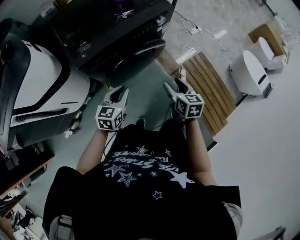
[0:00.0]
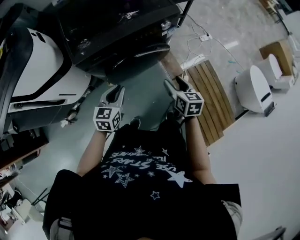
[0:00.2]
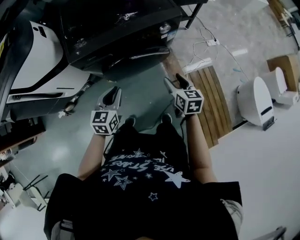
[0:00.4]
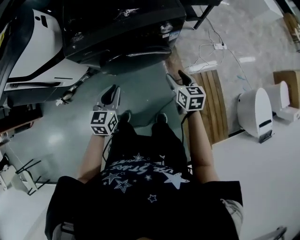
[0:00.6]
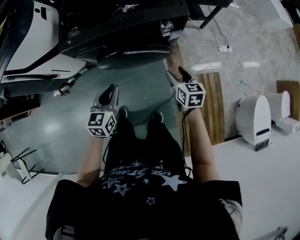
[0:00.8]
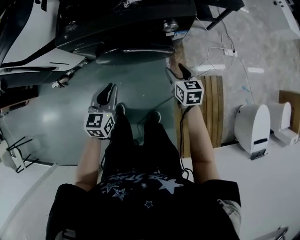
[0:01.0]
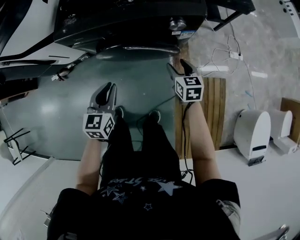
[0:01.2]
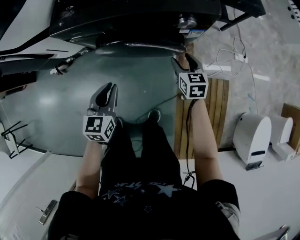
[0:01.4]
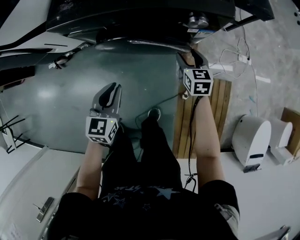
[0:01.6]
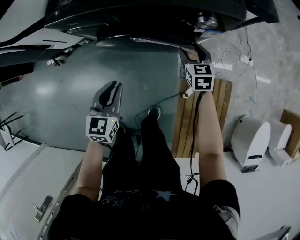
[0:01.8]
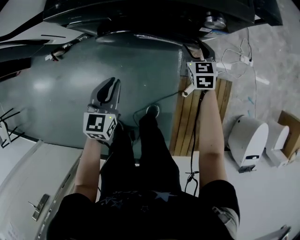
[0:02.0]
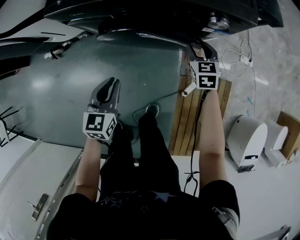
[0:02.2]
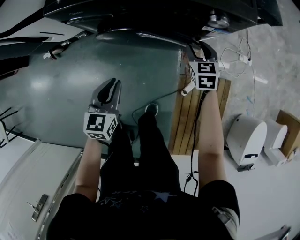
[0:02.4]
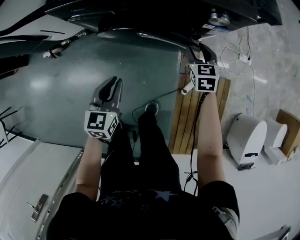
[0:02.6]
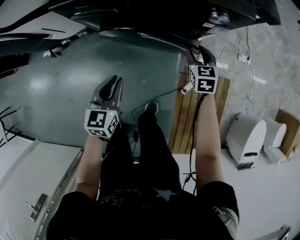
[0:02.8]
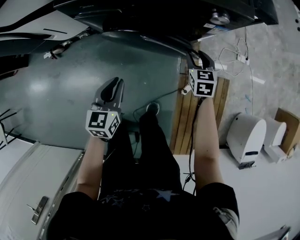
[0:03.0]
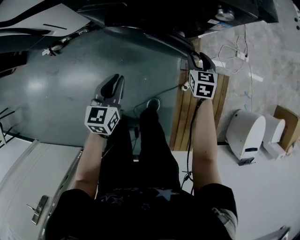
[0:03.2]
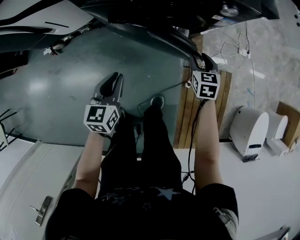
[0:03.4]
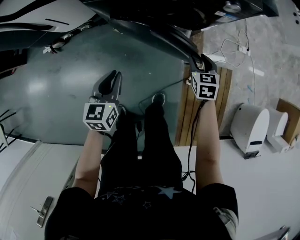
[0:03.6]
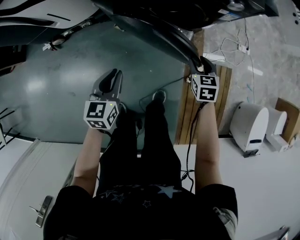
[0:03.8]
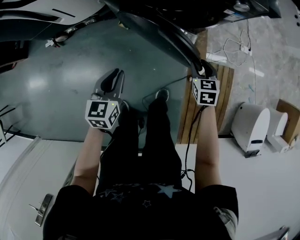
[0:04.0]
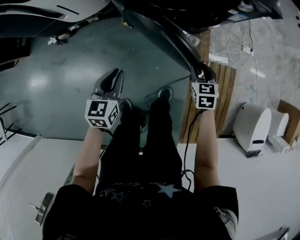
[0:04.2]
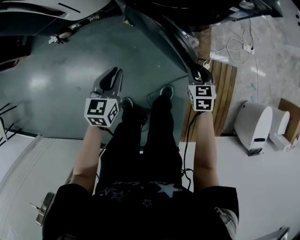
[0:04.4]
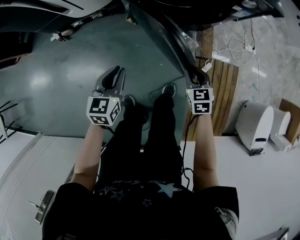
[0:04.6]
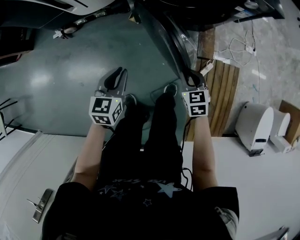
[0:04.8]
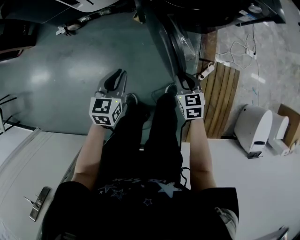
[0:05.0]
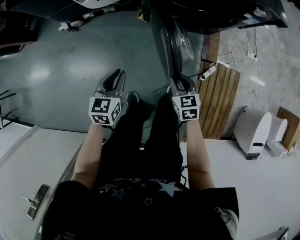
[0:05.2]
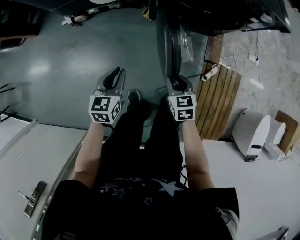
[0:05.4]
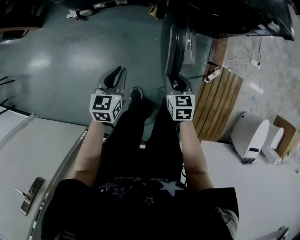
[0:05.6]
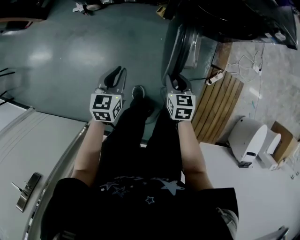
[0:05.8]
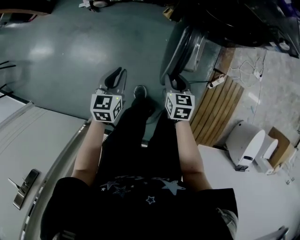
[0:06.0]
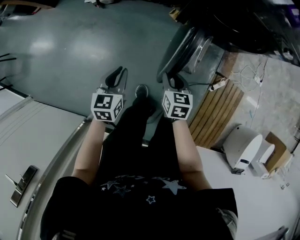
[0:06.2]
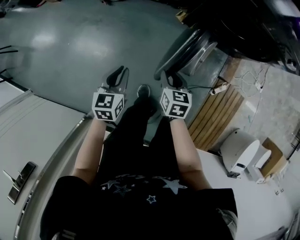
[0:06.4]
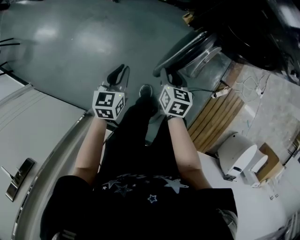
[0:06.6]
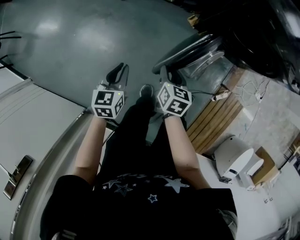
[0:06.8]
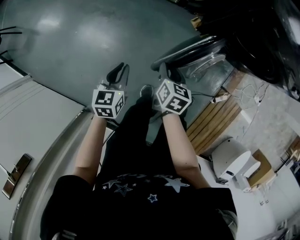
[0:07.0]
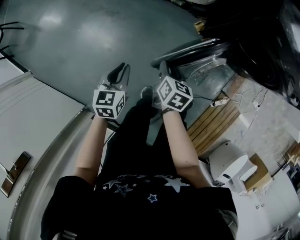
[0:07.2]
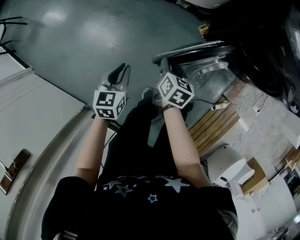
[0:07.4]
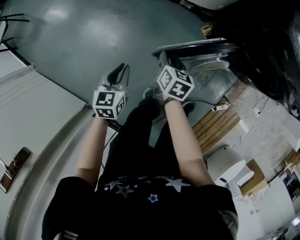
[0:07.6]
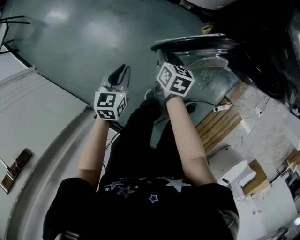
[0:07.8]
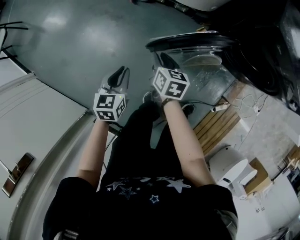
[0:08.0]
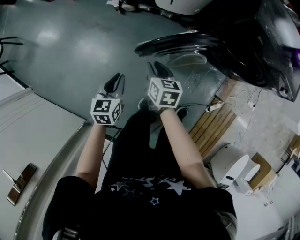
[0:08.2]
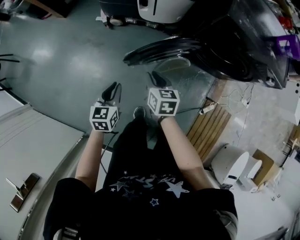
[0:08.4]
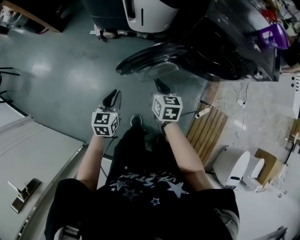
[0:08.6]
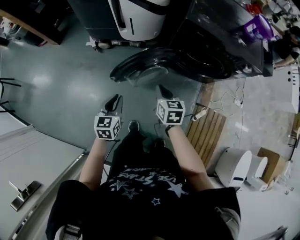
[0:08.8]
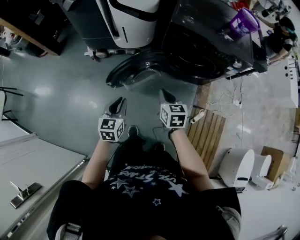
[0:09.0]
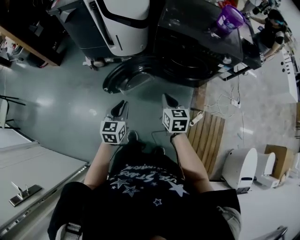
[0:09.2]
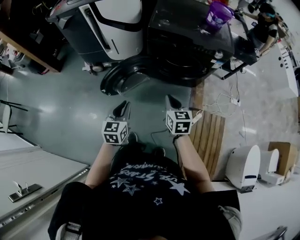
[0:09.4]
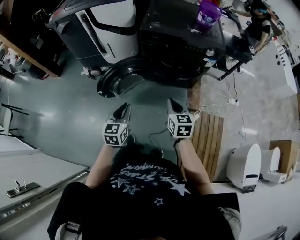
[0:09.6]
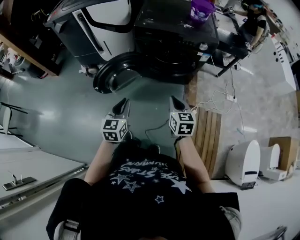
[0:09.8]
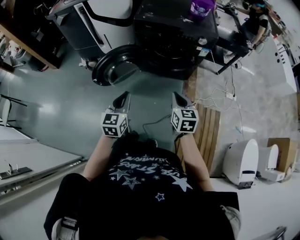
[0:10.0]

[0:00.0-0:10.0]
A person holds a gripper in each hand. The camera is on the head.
0:00.0 to 0:01.4: The left gripper moves roughly 10 cm, and changes its angle by about 40 degrees, while the right gripper moves some 30 cm, and swivels some 40 degrees.
0:01.4 to 0:02.8: The left gripper heads downward, covering roughly 5 cm.
0:02.8 to 0:04.2: The right gripper goes about 20 cm backward and to the left. The left gripper is displaced to the left and backward by some 15 cm.
0:04.2 to 0:05.8: The grippers both shift to the left and backward by roughly 25 cm.
0:05.8 to 0:07.2: The right gripper heads to the left and forward, covering roughly 25 cm. The left gripper shifts approximately 15 cm to the left.
0:07.2 to 0:08.6: The two grippers go about 15 cm upward and to the right.
0:08.6 to 0:10.0: The right gripper goes approximately 40 cm to the right and backward; the left gripper is displaced to the right, upward and backward by roughly 40 cm, and rotates about 20 degrees.

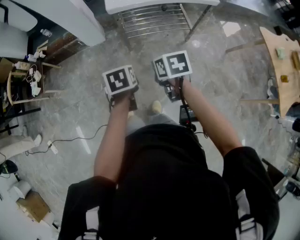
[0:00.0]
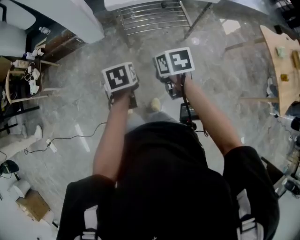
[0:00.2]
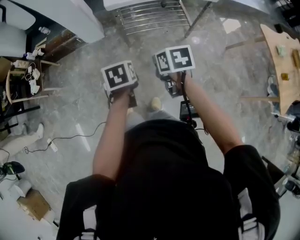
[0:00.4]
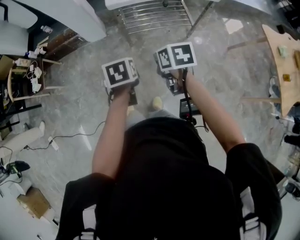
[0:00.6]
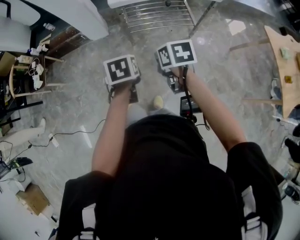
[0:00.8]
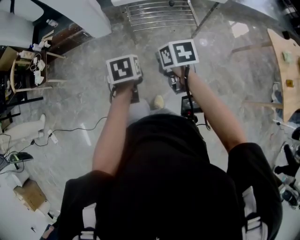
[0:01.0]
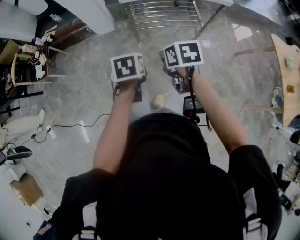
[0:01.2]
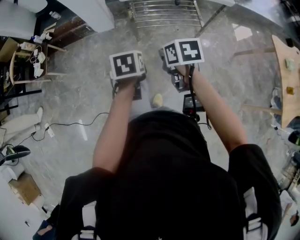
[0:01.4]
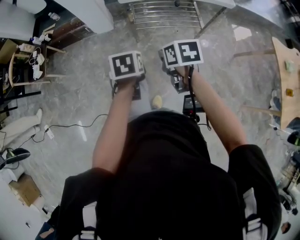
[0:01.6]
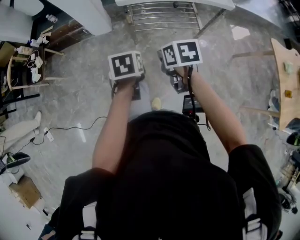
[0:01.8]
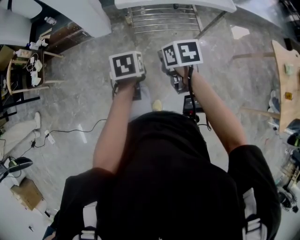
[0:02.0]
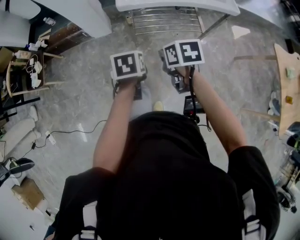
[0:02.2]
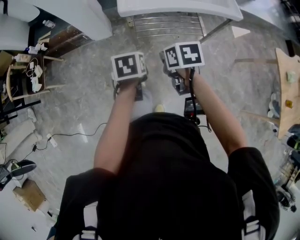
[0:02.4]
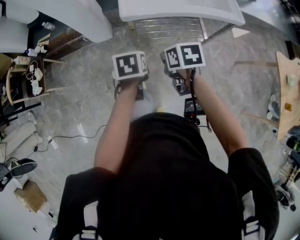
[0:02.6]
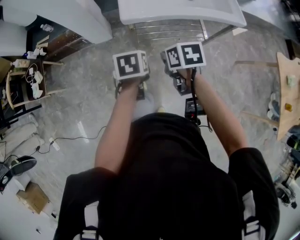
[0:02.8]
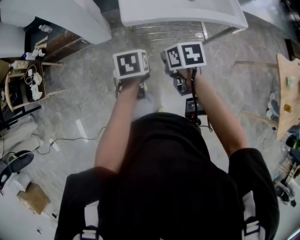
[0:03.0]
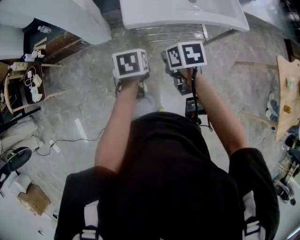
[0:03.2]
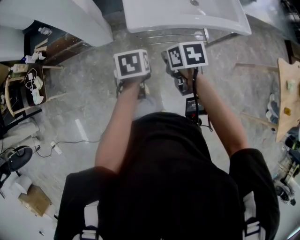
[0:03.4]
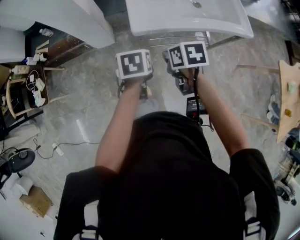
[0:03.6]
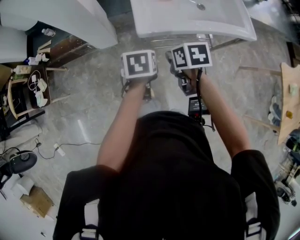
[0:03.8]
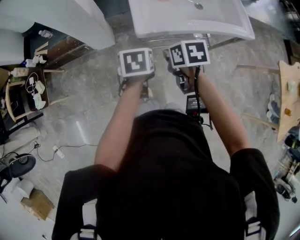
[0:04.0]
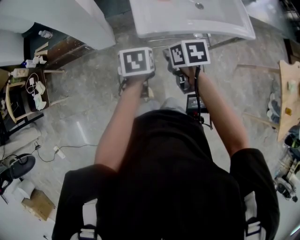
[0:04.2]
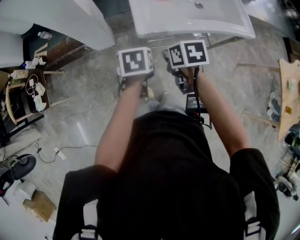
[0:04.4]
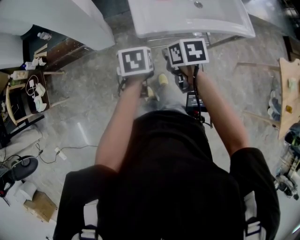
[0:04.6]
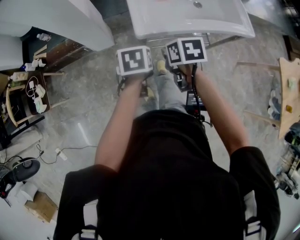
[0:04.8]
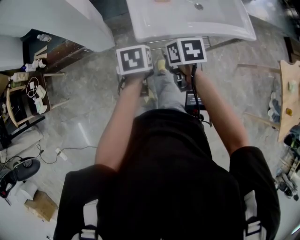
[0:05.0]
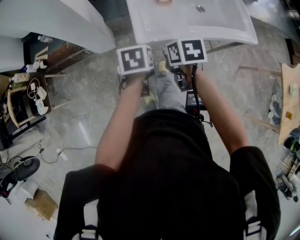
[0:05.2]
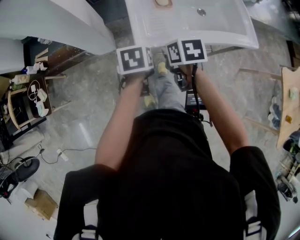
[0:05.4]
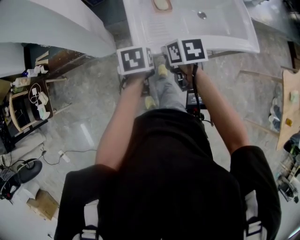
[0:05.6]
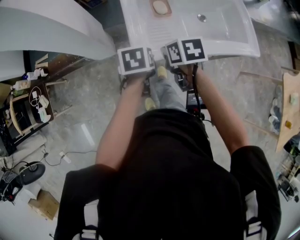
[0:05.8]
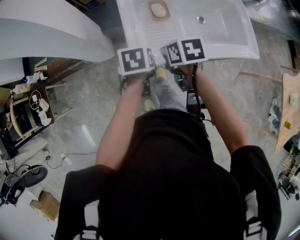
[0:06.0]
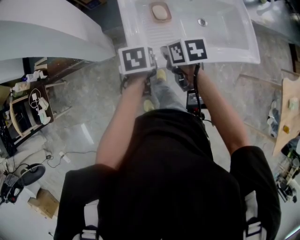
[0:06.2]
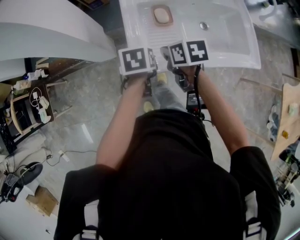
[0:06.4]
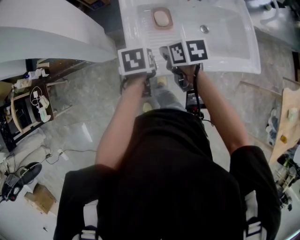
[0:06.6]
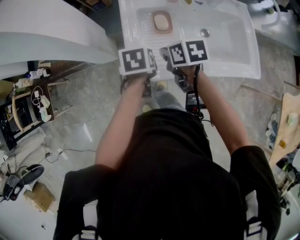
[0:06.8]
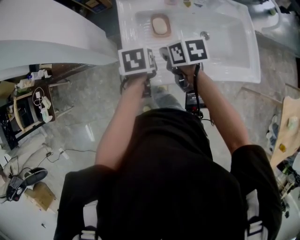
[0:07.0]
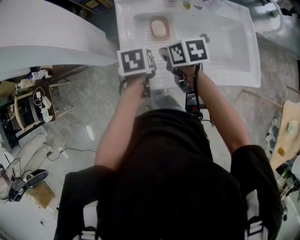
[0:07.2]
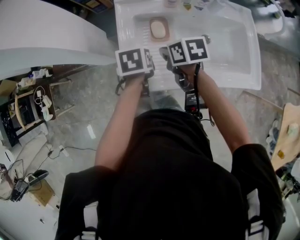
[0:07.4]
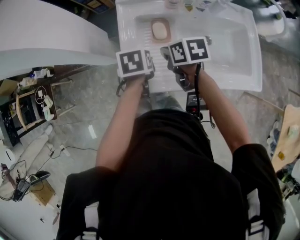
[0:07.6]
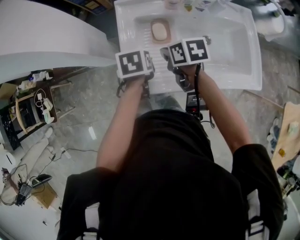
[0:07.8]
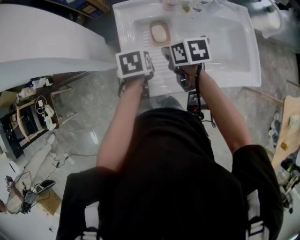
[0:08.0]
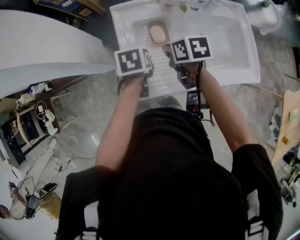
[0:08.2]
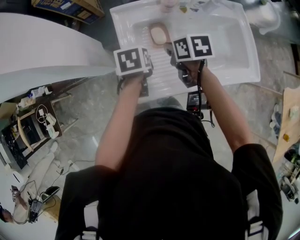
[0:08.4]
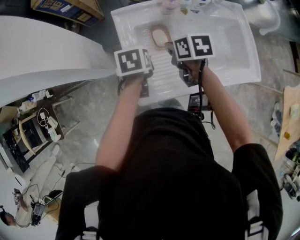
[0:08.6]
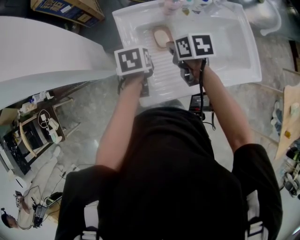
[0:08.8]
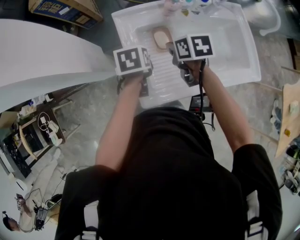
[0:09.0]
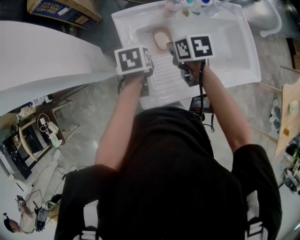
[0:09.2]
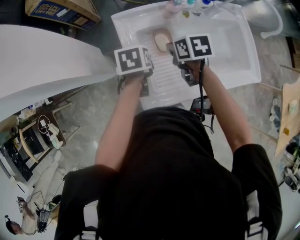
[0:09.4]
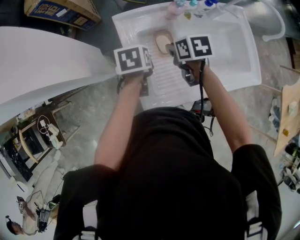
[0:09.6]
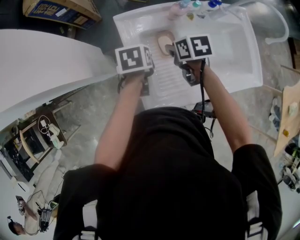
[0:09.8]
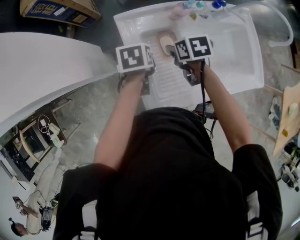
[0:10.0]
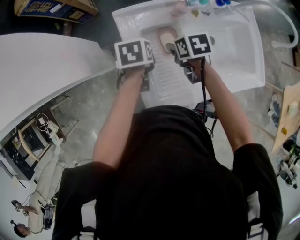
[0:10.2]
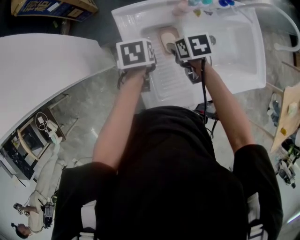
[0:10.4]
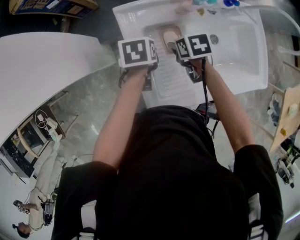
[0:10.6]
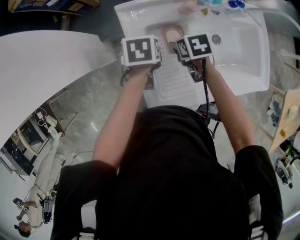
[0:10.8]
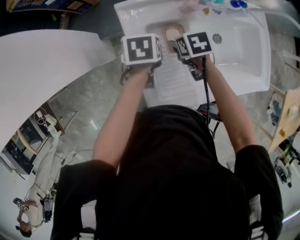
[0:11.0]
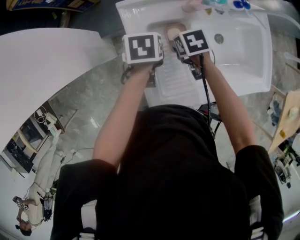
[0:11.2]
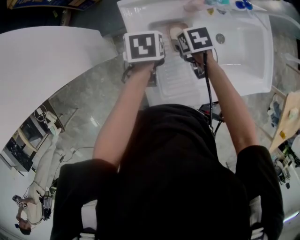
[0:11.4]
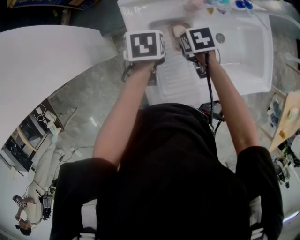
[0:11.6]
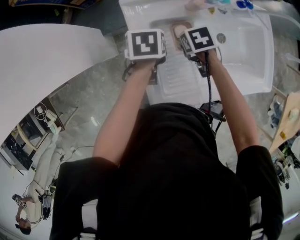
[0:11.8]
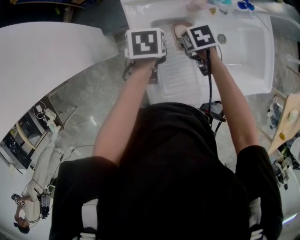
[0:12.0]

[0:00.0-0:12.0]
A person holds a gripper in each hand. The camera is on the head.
0:00.0 to 0:01.6: The grippers make only small movements.
0:01.6 to 0:03.0: Both grippers travel together forward, some 20 cm.
0:03.0 to 0:04.4: The two grippers go about 10 cm forward.
0:04.4 to 0:06.0: Both grippers move forward, about 20 cm.
0:06.0 to 0:07.6: The grippers both shift forward and to the right by about 15 cm.
0:07.6 to 0:09.0: The grippers both shift forward by approximately 5 cm.
0:09.0 to 0:10.4: The right gripper is displaced downward and forward by roughly 10 cm, and opens its fingers, while the left gripper shifts approximately 10 cm forward and downward.
0:10.4 to 0:12.0: There are only small adjustments of the grippers.

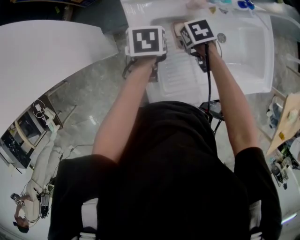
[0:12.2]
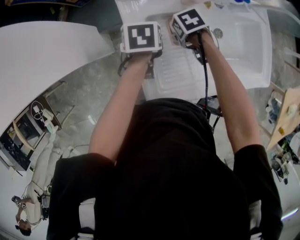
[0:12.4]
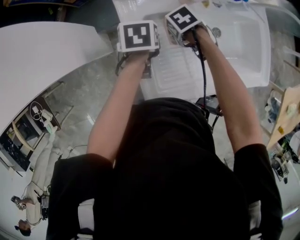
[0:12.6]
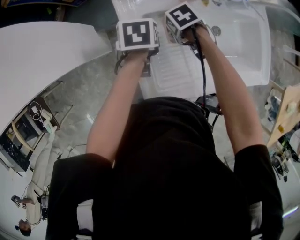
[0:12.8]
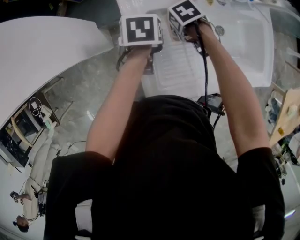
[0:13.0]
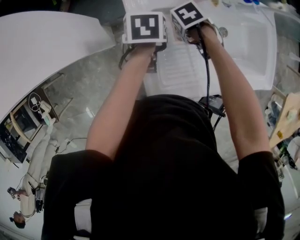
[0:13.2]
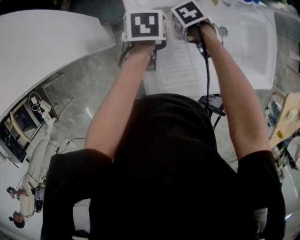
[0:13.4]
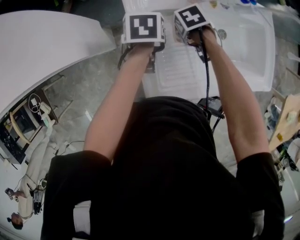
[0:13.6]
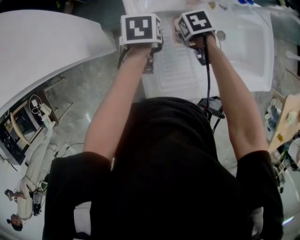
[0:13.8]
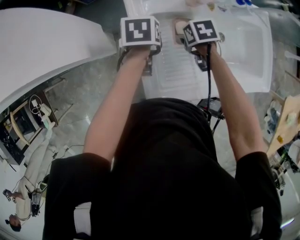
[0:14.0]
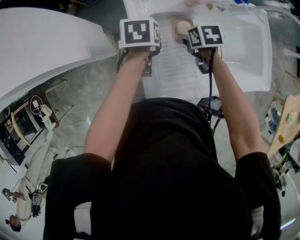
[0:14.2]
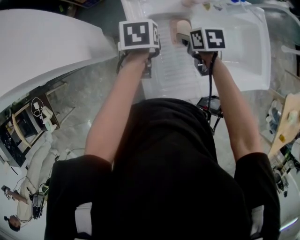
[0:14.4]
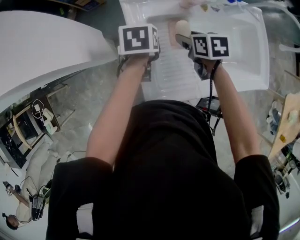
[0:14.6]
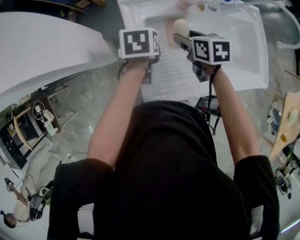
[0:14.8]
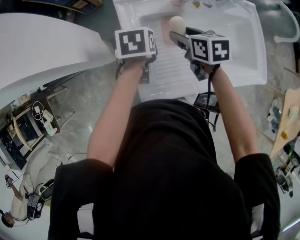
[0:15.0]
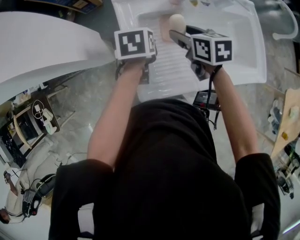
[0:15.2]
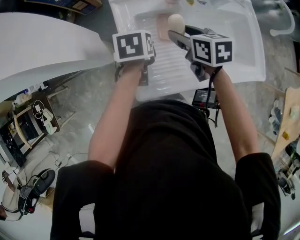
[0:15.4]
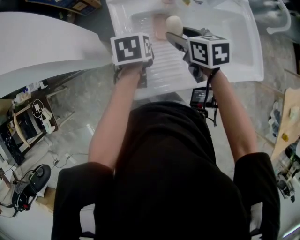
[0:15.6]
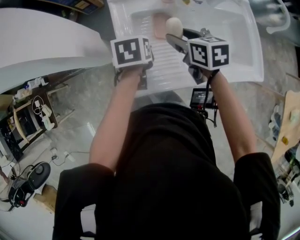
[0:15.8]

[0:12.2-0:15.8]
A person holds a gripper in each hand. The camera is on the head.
0:12.2 to 0:14.0: The grippers make only small movements.
0:14.0 to 0:15.8: The left gripper shifts by some 15 cm; the right gripper shifts some 15 cm upward, and tilts its fingers about 30 degrees upward.
